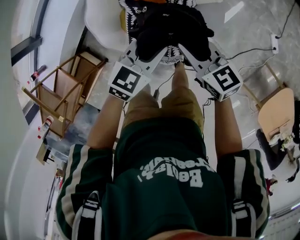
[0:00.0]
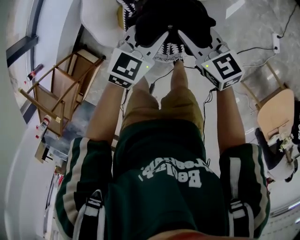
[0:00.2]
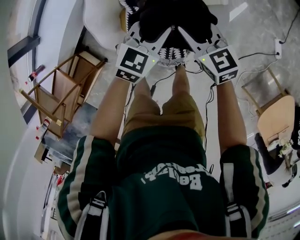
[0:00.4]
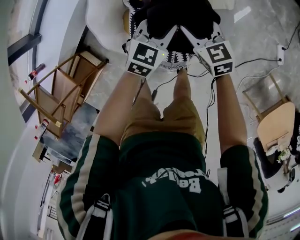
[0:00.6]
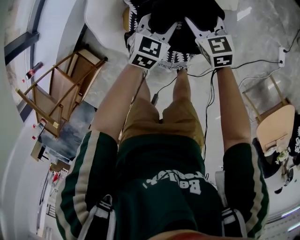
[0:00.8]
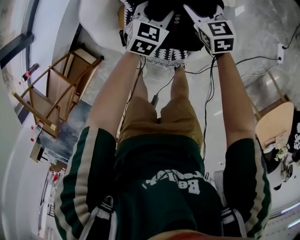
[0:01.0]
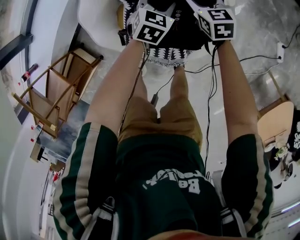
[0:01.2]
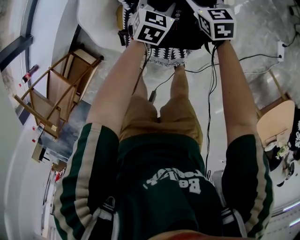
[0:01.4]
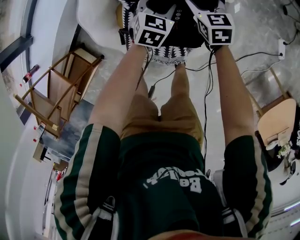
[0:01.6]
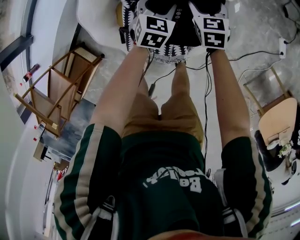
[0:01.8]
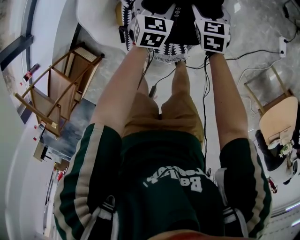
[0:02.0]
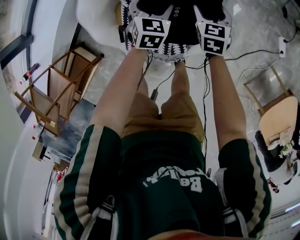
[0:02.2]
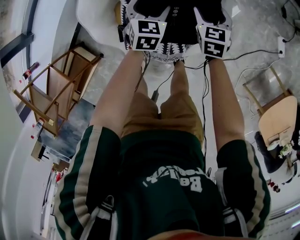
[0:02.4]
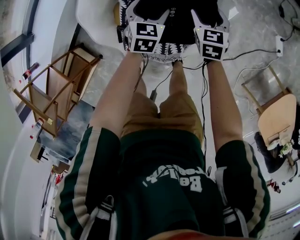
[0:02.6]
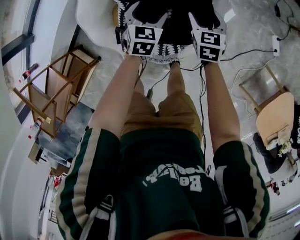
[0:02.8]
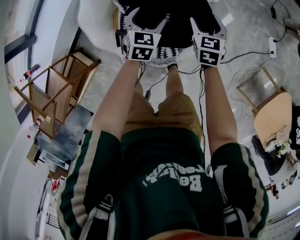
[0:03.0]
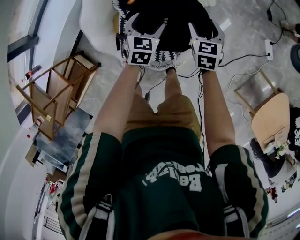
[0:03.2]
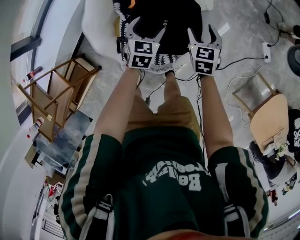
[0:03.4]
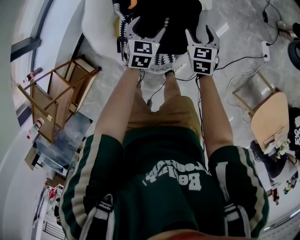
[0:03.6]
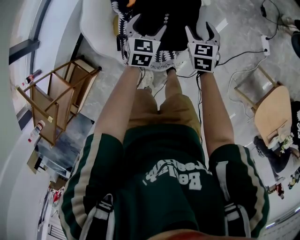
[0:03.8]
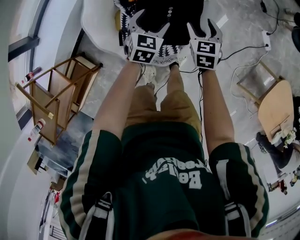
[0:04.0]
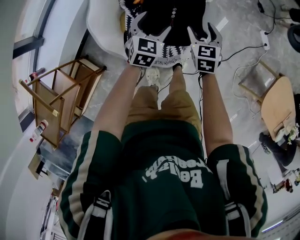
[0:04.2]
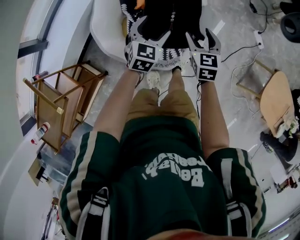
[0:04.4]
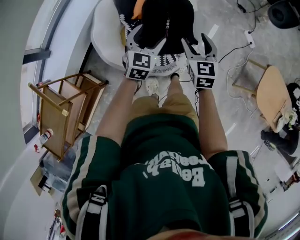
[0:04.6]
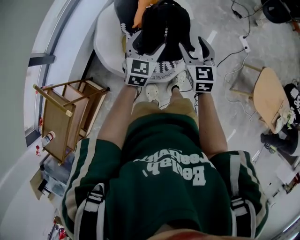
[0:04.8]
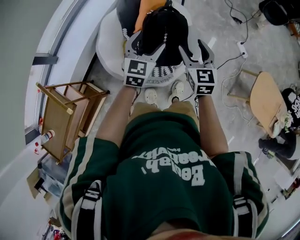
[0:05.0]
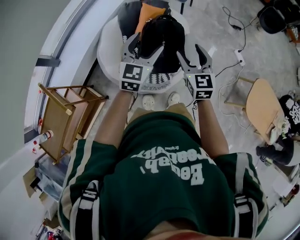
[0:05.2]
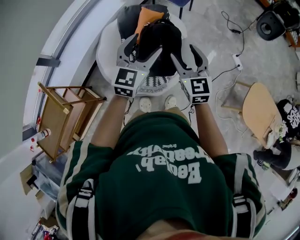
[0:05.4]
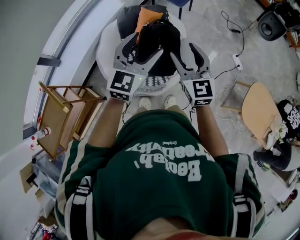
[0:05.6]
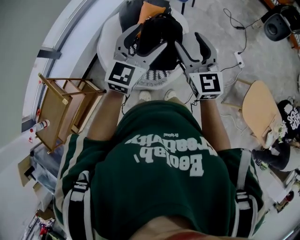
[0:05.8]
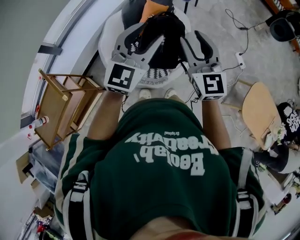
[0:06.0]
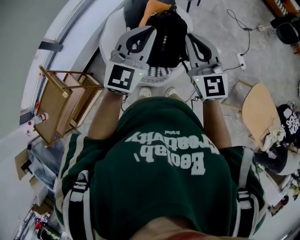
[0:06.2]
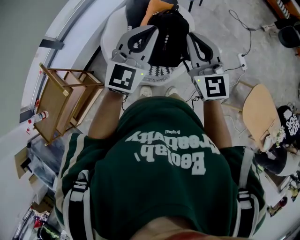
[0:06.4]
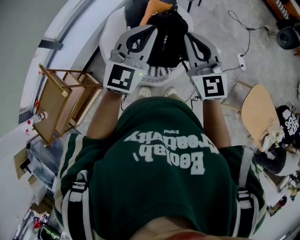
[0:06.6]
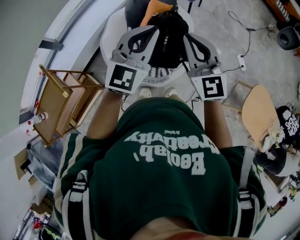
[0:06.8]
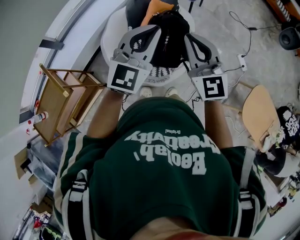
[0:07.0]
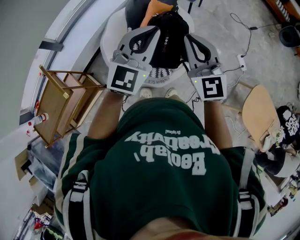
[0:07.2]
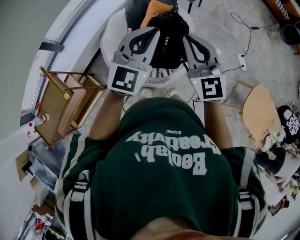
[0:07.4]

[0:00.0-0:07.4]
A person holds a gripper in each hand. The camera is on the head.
0:00.0 to 0:01.4: Both grippers travel together downward and forward, some 30 cm. The right gripper turns by about 20 degrees, and opens its fingers; the left gripper rotates about 20 degrees.
0:01.4 to 0:03.0: The left gripper heads backward and upward, covering approximately 10 cm, and opens up. Meanwhile the right gripper heads backward, to the right and upward, covering approximately 20 cm, and rotates some 20 degrees.
0:03.0 to 0:04.4: The left gripper moves upward and backward, roughly 25 cm, while the right gripper shifts some 25 cm backward and upward.
0:04.4 to 0:06.0: Both grippers travel together upward, roughly 40 cm. The left gripper rotates some 30 degrees, and closes its fingers. The right gripper tips its fingers upward by about 30 degrees.
0:06.0 to 0:07.4: The right gripper closes up. The left gripper closes.

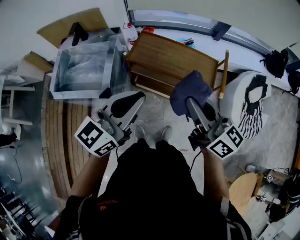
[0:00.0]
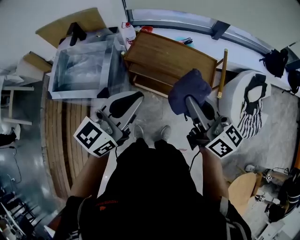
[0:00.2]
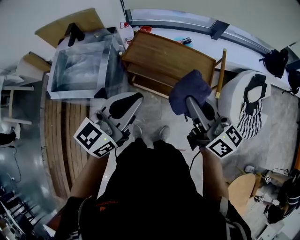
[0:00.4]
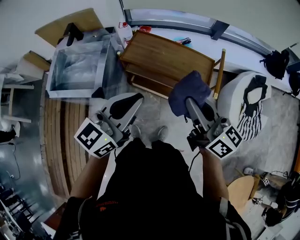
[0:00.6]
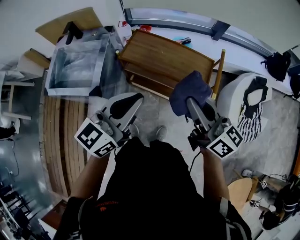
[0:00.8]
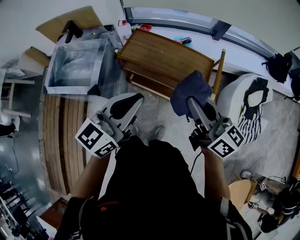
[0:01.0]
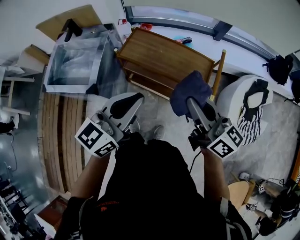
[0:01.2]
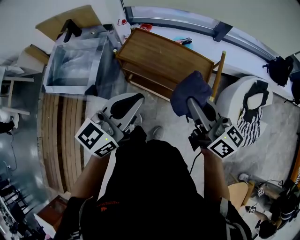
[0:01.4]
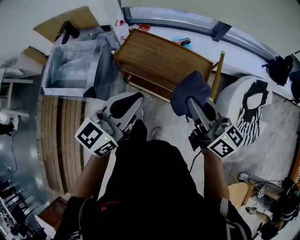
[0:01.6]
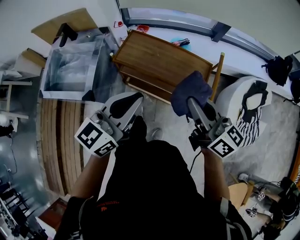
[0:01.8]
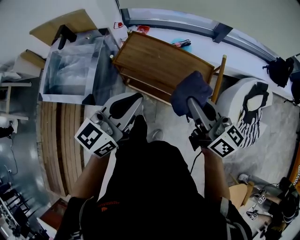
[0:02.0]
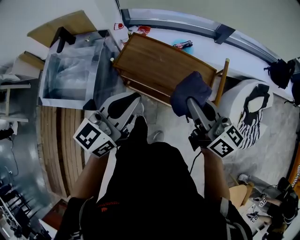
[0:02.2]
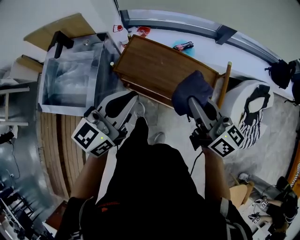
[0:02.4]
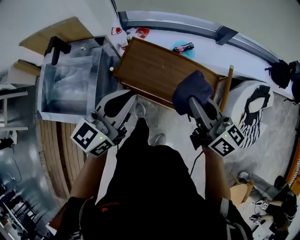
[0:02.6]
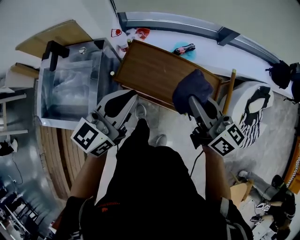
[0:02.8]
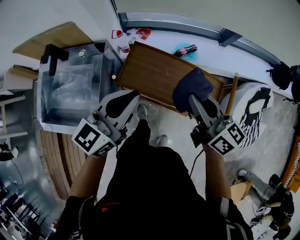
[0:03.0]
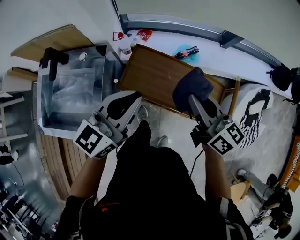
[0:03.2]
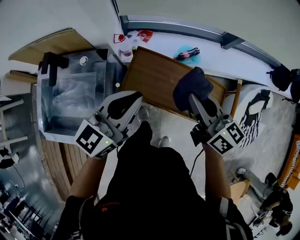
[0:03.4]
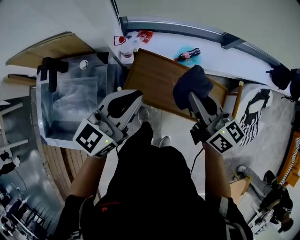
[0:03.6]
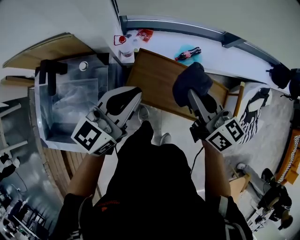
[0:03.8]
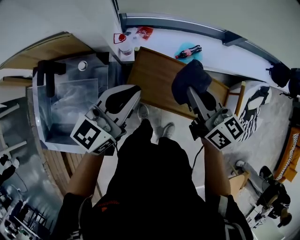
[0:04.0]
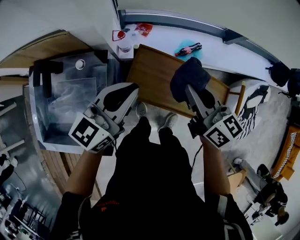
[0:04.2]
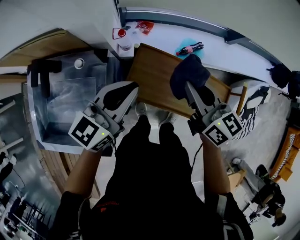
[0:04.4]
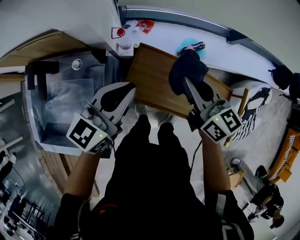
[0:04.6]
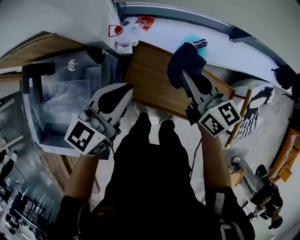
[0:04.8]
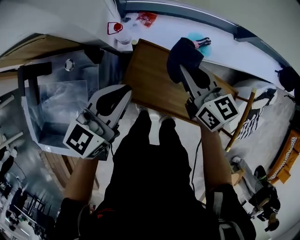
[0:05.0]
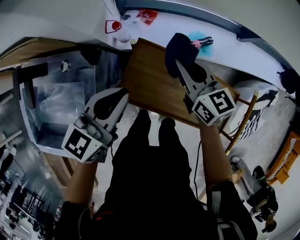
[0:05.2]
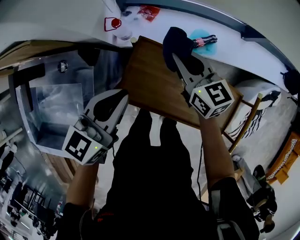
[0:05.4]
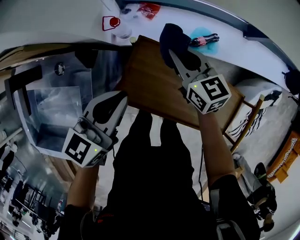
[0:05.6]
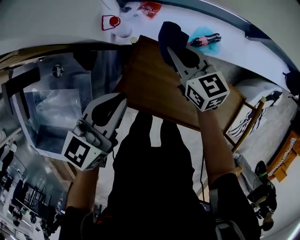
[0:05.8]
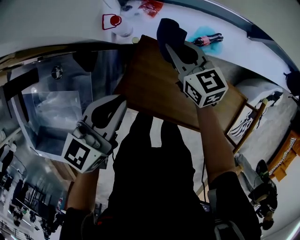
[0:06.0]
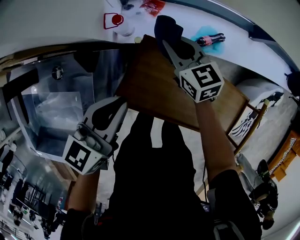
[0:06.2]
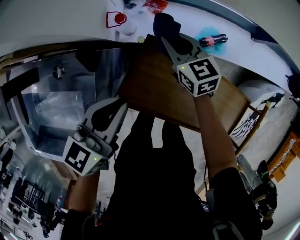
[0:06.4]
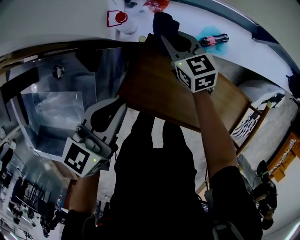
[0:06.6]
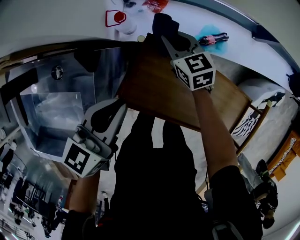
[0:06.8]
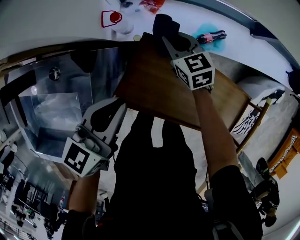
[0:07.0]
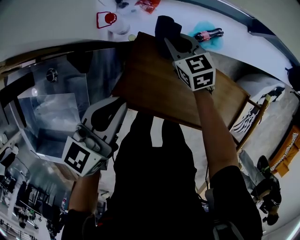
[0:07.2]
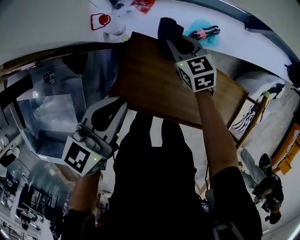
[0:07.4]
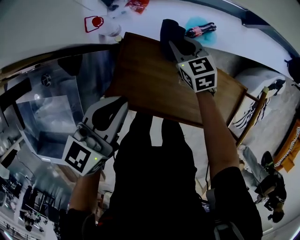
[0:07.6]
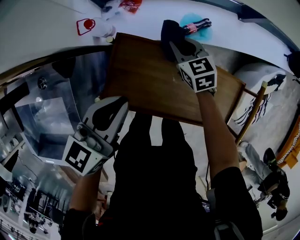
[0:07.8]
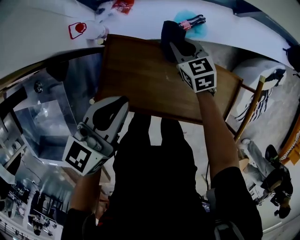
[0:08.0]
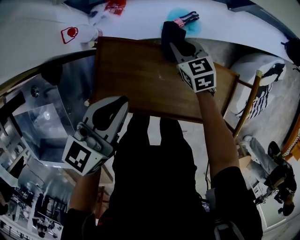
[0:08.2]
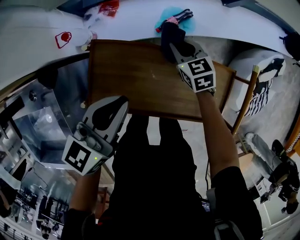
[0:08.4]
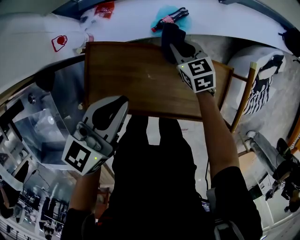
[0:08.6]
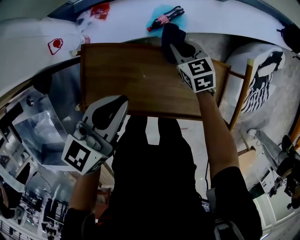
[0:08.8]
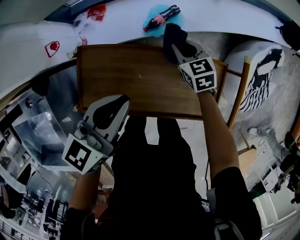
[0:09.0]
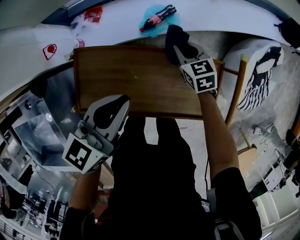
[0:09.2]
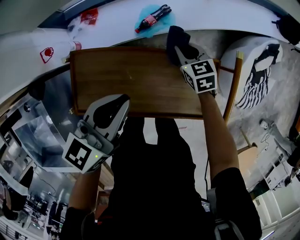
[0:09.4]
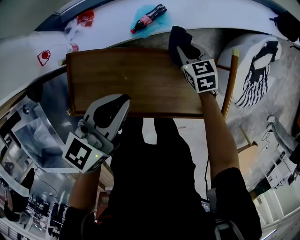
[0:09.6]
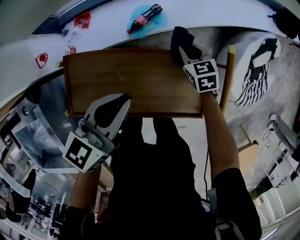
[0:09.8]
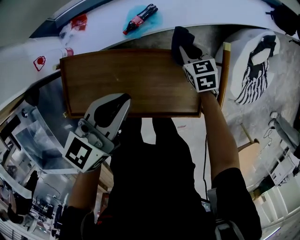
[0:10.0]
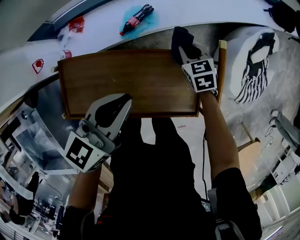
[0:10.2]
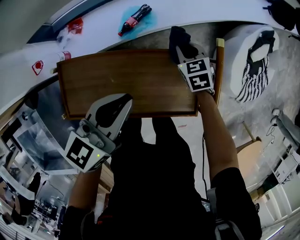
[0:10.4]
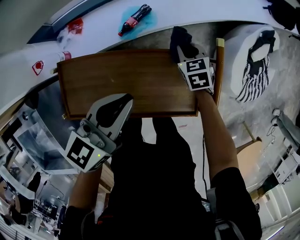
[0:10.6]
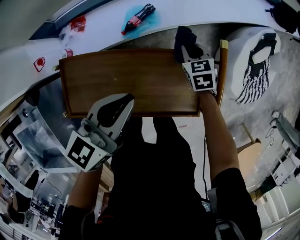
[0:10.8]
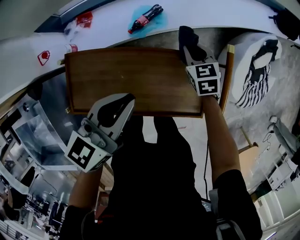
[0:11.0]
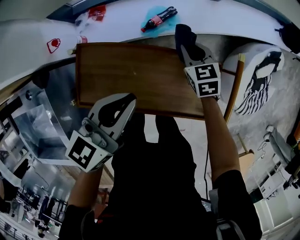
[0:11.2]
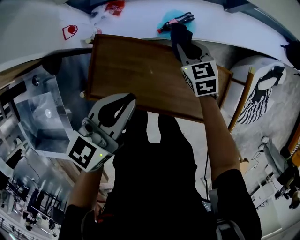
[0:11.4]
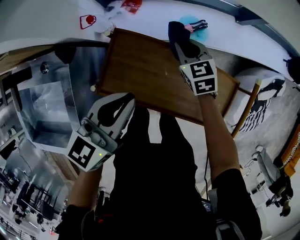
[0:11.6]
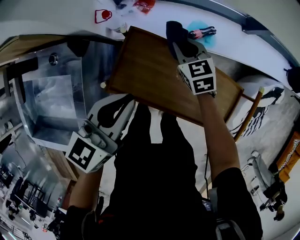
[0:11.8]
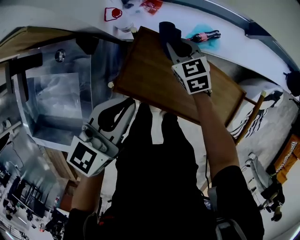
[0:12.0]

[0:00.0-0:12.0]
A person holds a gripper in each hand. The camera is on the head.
0:00.0 to 0:01.6: Both grippers travel together to the right, roughly 10 cm.
0:01.6 to 0:03.0: Both grippers travel together forward, some 25 cm.
0:03.0 to 0:04.4: The grippers both shift forward, to the left and downward by approximately 20 cm.
0:04.4 to 0:06.0: The left gripper moves downward, some 15 cm; the right gripper moves downward and forward, roughly 25 cm.
0:06.0 to 0:07.6: The right gripper goes approximately 10 cm to the right and downward.
0:07.6 to 0:09.0: Both grippers travel together to the right, roughly 20 cm.
0:09.0 to 0:10.4: Both grippers travel together to the right, about 15 cm.
0:10.4 to 0:12.0: The left gripper shifts by approximately 30 cm, and swivels some 30 degrees. The right gripper shifts by about 40 cm, and turns by approximately 30 degrees.

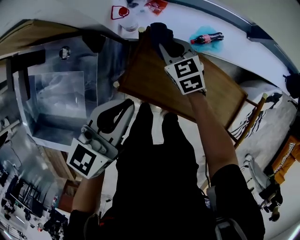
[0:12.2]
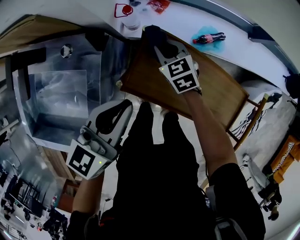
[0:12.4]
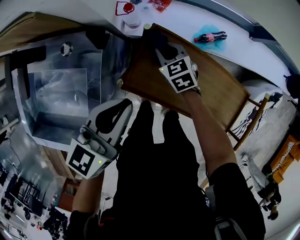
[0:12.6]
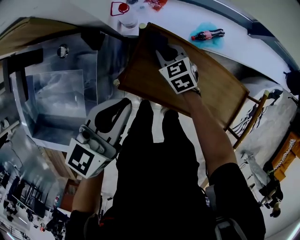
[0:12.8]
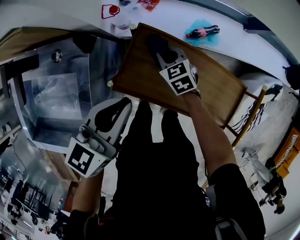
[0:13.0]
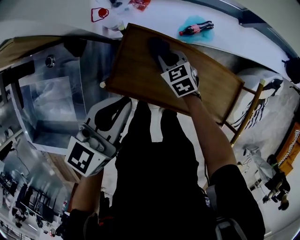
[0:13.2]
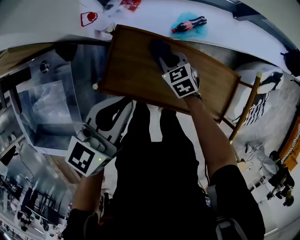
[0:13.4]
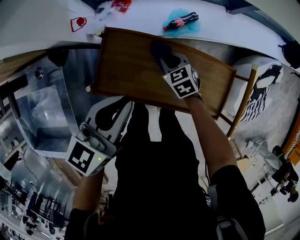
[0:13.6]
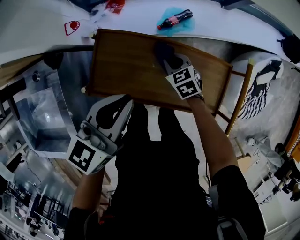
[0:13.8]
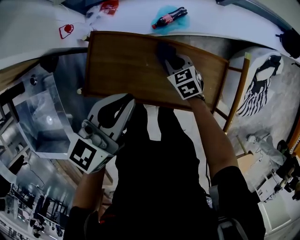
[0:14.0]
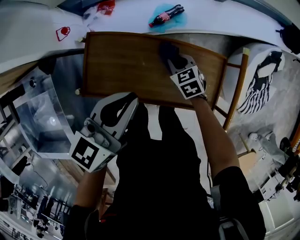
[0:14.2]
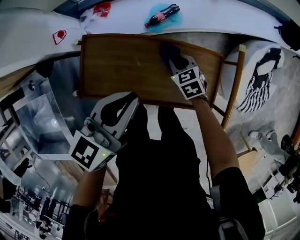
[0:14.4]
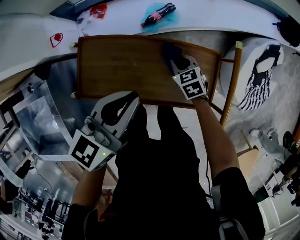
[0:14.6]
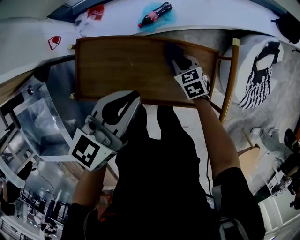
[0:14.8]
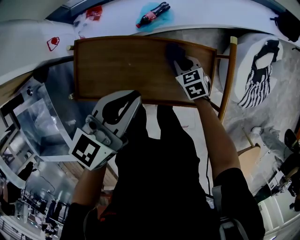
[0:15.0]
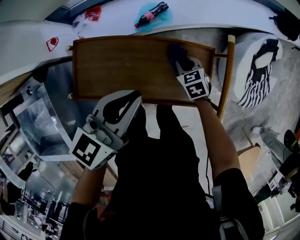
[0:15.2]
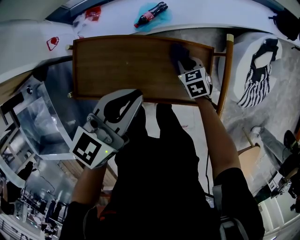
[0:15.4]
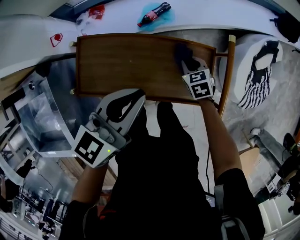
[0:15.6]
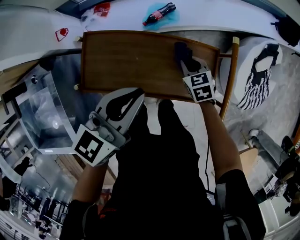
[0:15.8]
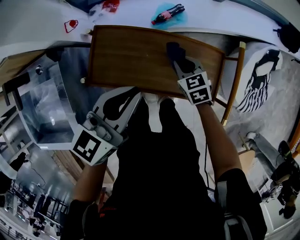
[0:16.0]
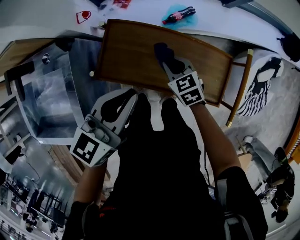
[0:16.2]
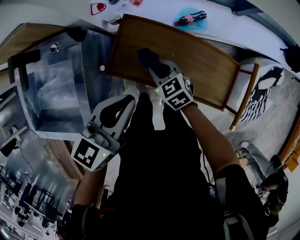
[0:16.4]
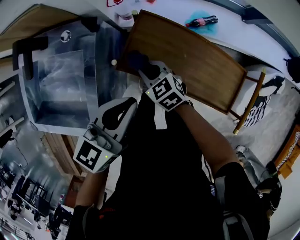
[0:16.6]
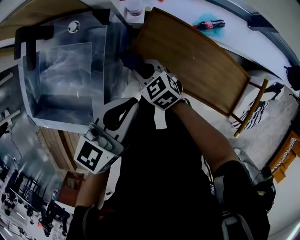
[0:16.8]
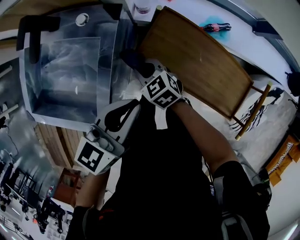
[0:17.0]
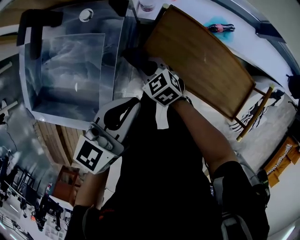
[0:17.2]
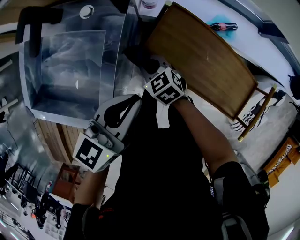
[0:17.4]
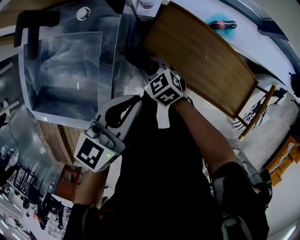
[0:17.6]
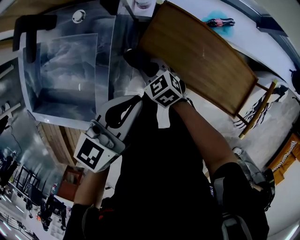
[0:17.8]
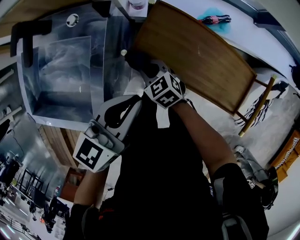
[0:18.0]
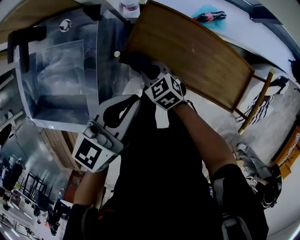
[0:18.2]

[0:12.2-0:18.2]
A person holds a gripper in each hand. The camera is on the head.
0:12.2 to 0:13.8: The left gripper shifts some 15 cm to the right. The right gripper moves to the right and backward, some 25 cm.
0:13.8 to 0:15.2: The grippers both shift to the right by some 15 cm.
0:15.2 to 0:16.6: The right gripper shifts by roughly 40 cm, and swivels some 40 degrees; the left gripper changes place by about 25 cm, and changes its angle by some 20 degrees.
0:16.6 to 0:18.2: The left gripper moves about 10 cm to the left and comes back. The right gripper moves downward, roughly 5 cm, and goes to the left and returns, about 10 cm each way.
